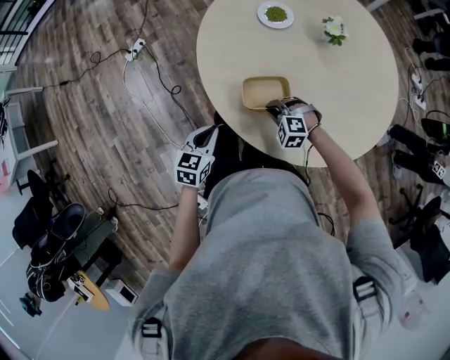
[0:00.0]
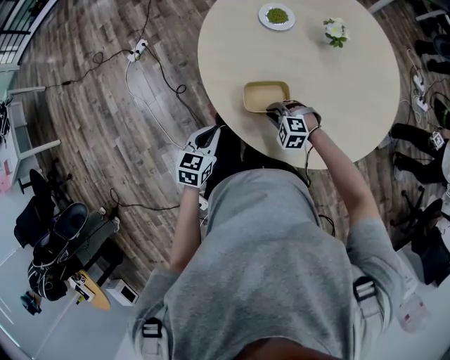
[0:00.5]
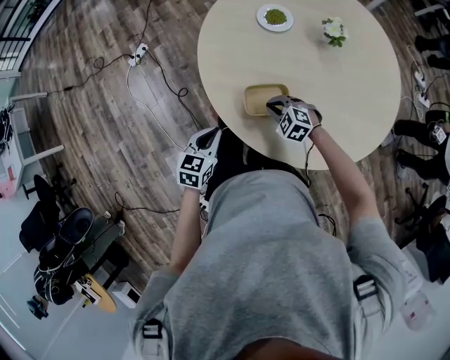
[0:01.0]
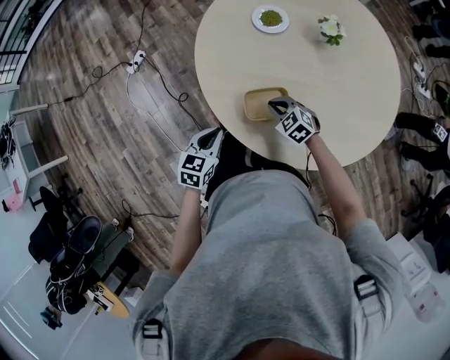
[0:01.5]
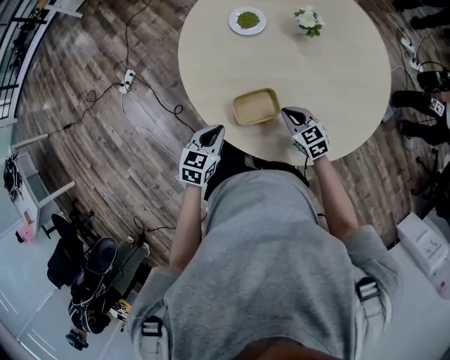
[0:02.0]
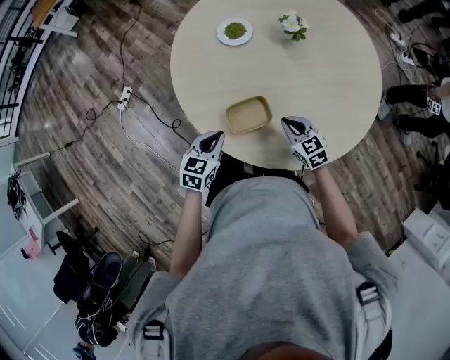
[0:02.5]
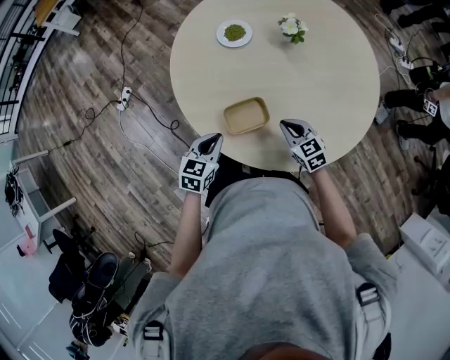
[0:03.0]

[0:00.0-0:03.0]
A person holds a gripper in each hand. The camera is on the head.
0:00.0 to 0:01.5: The right gripper goes approximately 5 cm forward, and turns by some 40 degrees.
0:01.5 to 0:03.0: The right gripper goes some 15 cm to the right, and swivels roughly 30 degrees. Meanwhile the left gripper moves to the right, approximately 10 cm.

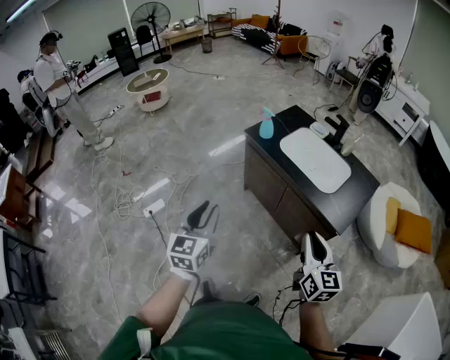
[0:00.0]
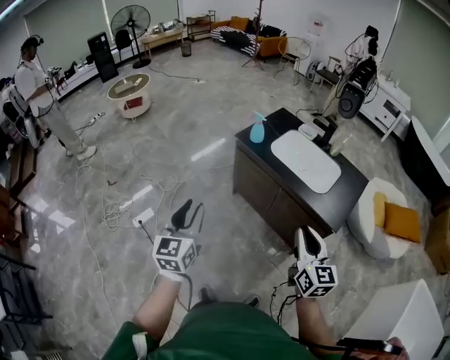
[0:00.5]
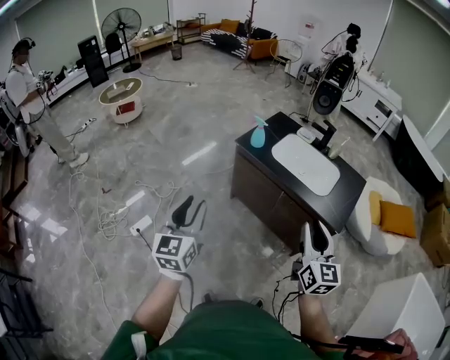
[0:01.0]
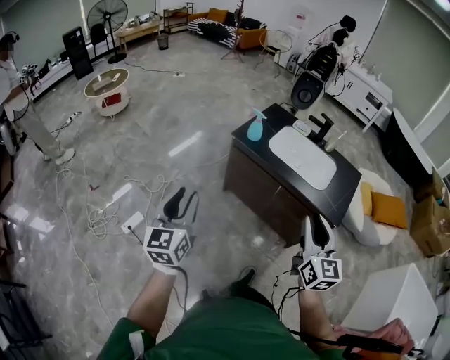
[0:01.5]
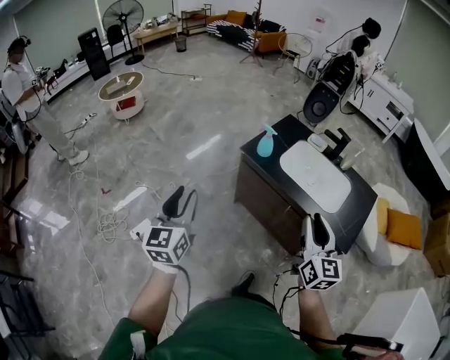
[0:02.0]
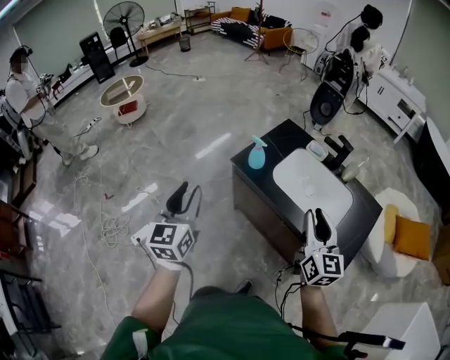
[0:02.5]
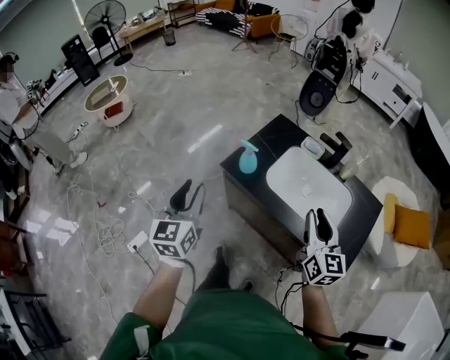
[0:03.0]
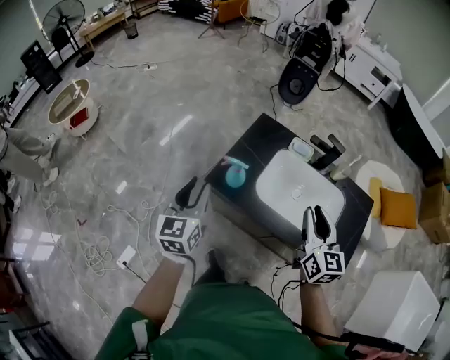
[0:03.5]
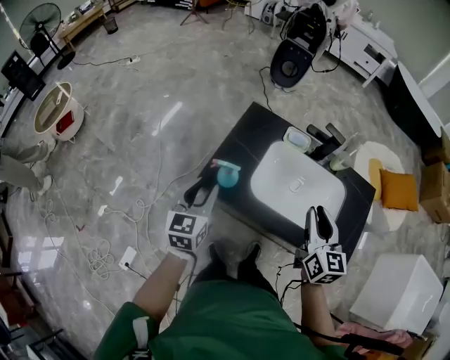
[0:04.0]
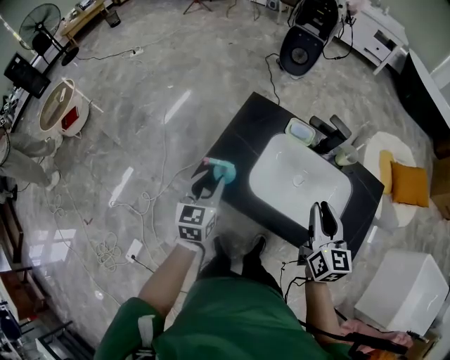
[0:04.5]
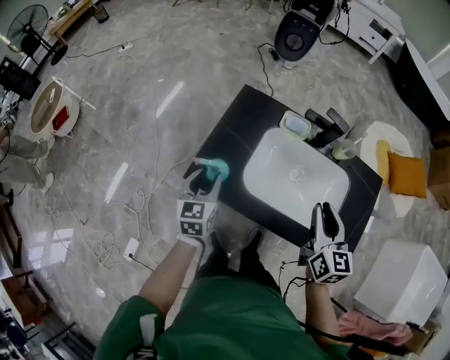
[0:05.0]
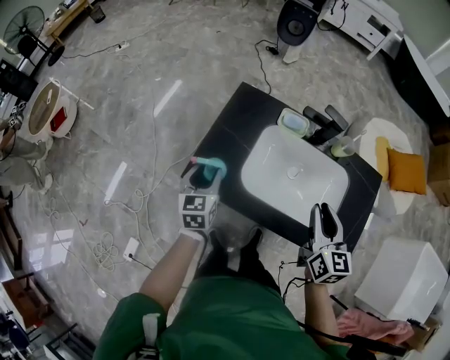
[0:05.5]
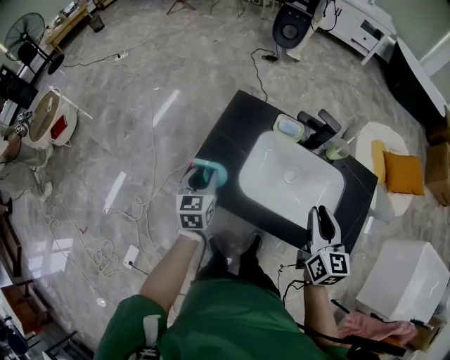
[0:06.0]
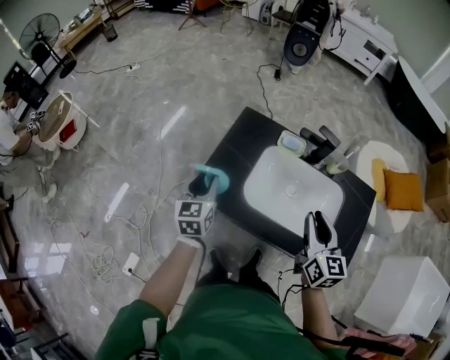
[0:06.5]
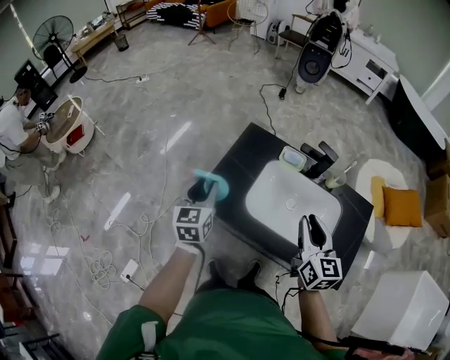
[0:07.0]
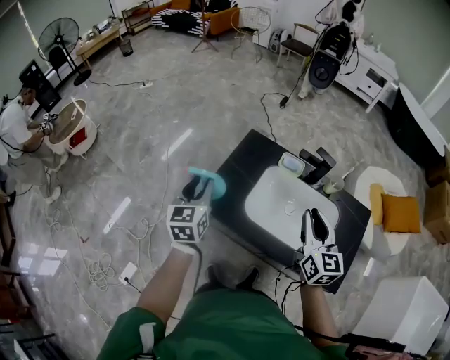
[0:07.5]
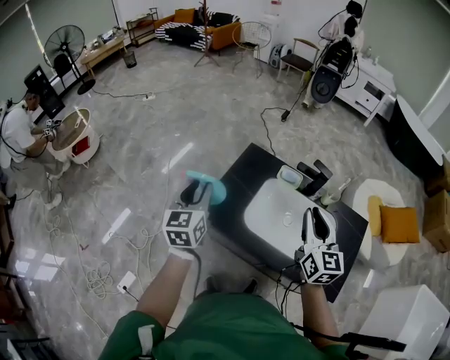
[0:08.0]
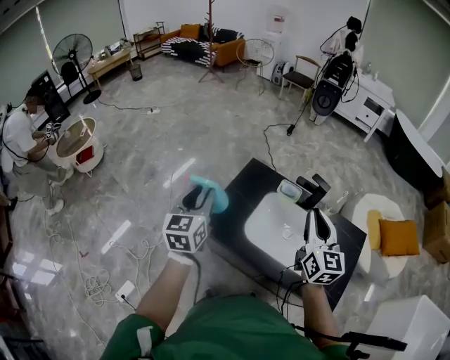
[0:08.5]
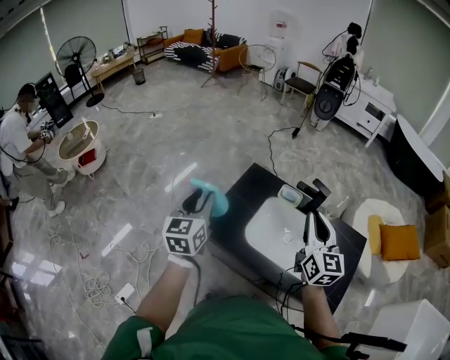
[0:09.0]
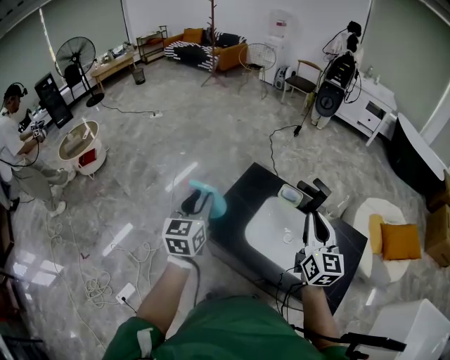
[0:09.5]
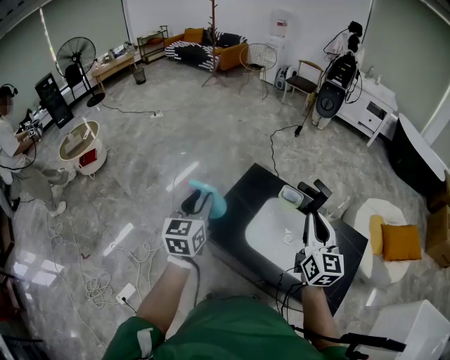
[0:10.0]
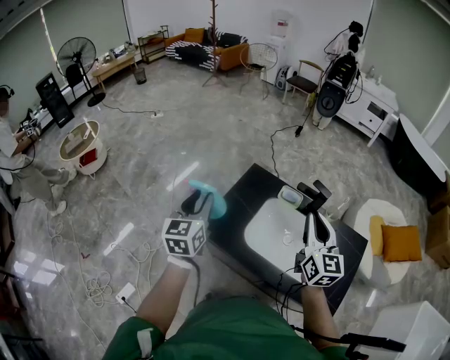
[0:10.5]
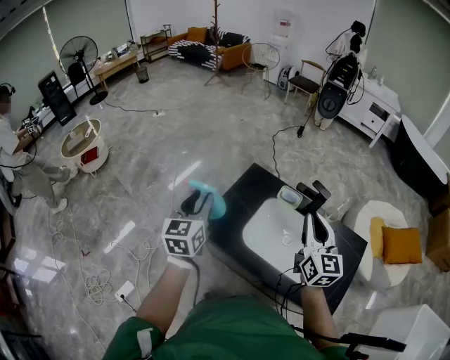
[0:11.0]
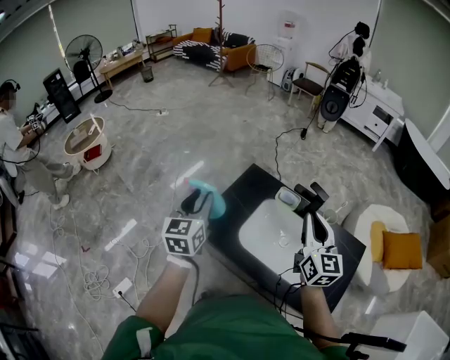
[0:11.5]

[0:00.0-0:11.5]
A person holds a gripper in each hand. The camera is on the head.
0:00.0 to 0:02.0: The right gripper shifts roughly 25 cm forward and to the left; the left gripper heads to the left and forward, covering about 30 cm.
0:02.0 to 0:04.0: The pair of grippers is taken forward, approximately 50 cm. The right gripper rotates roughly 20 degrees, while the left gripper swivels some 30 degrees.
0:04.0 to 0:06.0: The left gripper goes approximately 15 cm forward, downward and to the right. The right gripper travels to the right by roughly 5 cm.
0:06.0 to 0:07.5: The left gripper goes some 15 cm upward; the right gripper shifts some 10 cm upward.
0:07.5 to 0:09.5: The two grippers go roughly 10 cm upward.
0:09.5 to 0:11.5: There are only small adjustments of the grippers.

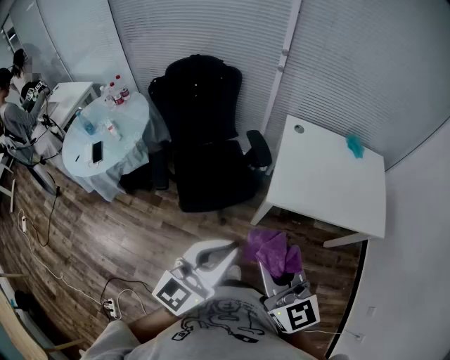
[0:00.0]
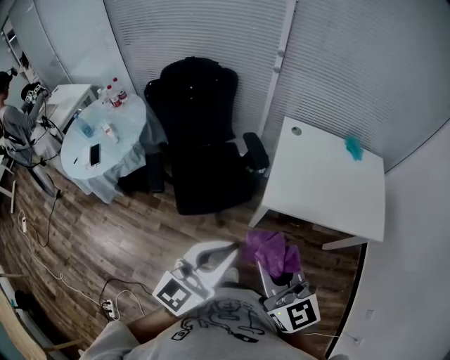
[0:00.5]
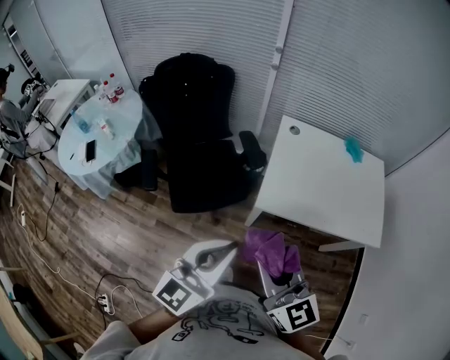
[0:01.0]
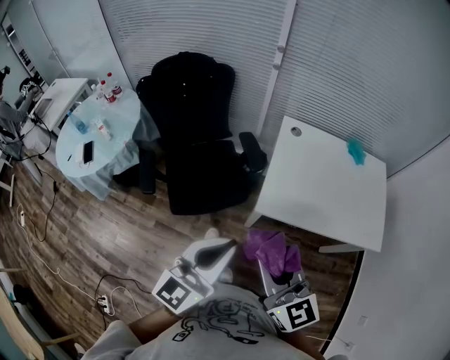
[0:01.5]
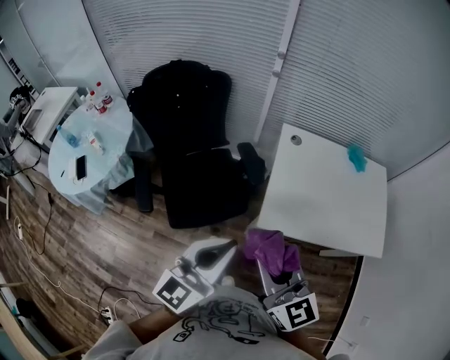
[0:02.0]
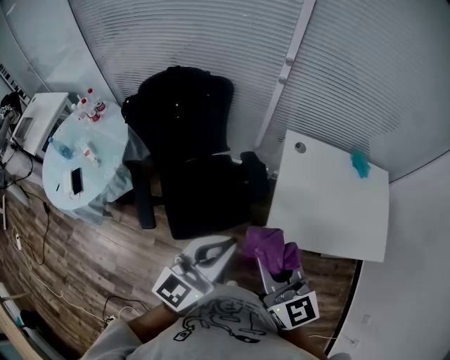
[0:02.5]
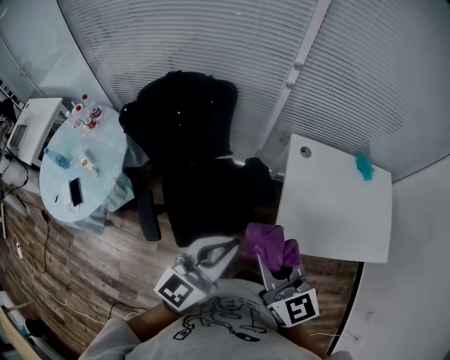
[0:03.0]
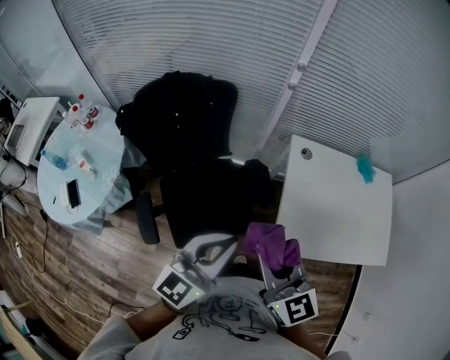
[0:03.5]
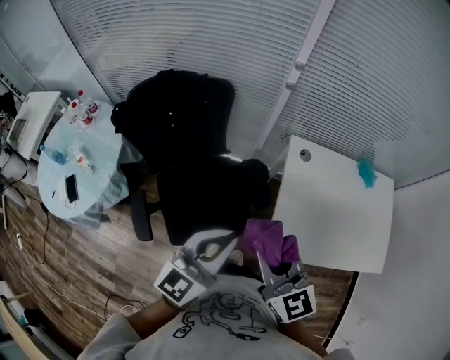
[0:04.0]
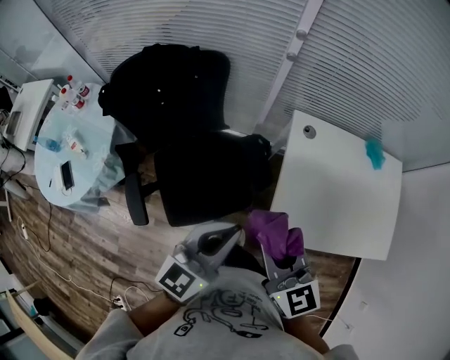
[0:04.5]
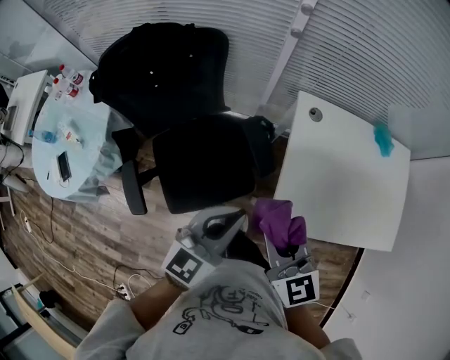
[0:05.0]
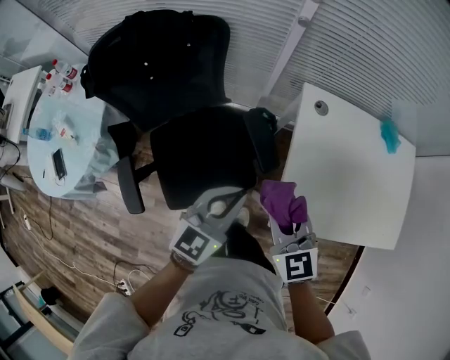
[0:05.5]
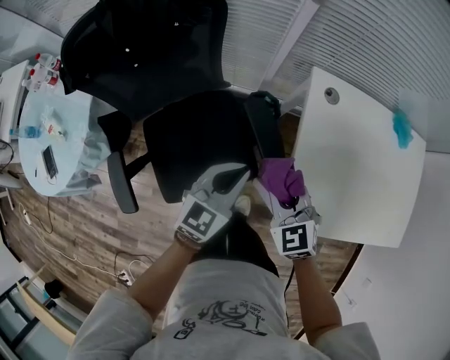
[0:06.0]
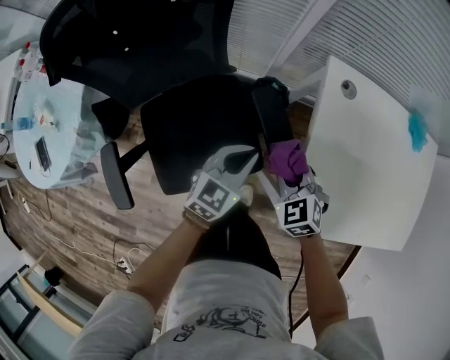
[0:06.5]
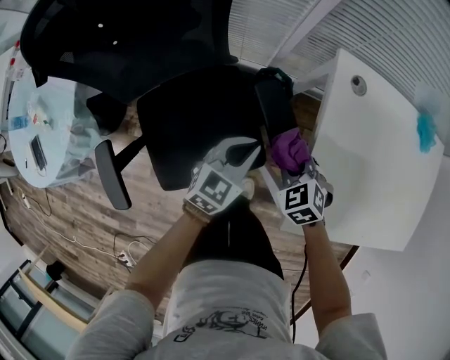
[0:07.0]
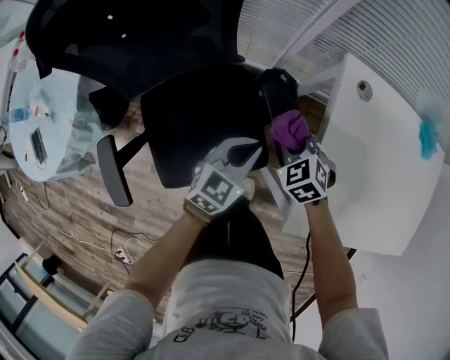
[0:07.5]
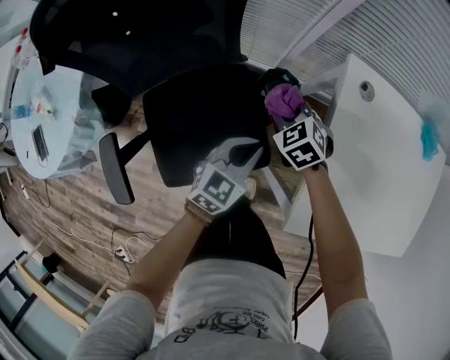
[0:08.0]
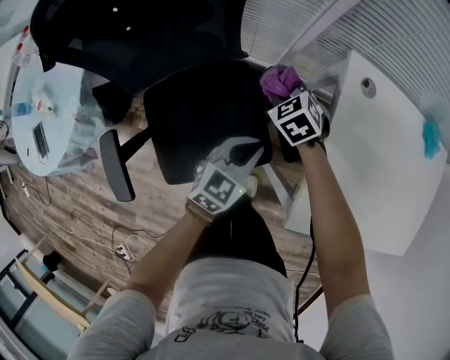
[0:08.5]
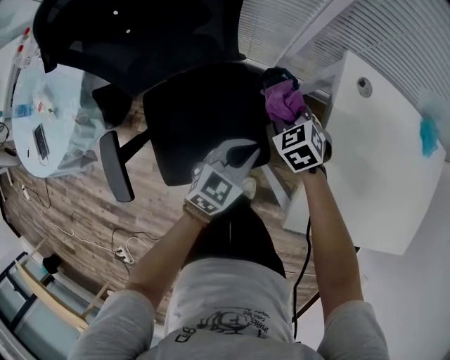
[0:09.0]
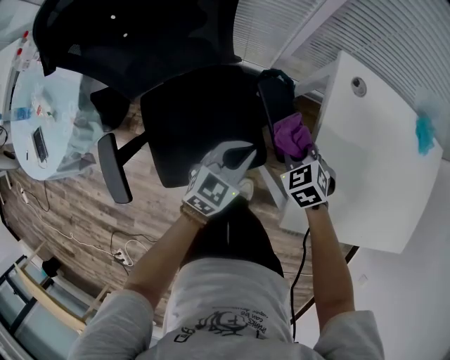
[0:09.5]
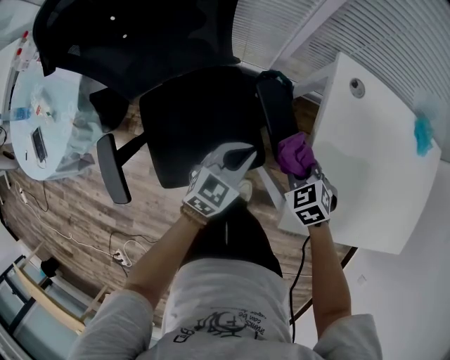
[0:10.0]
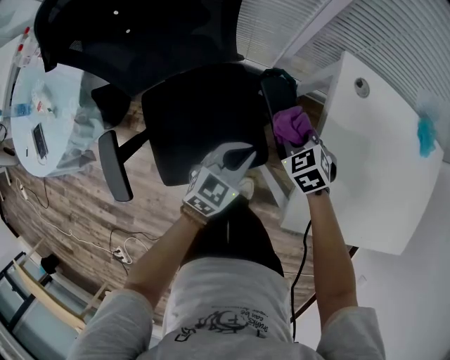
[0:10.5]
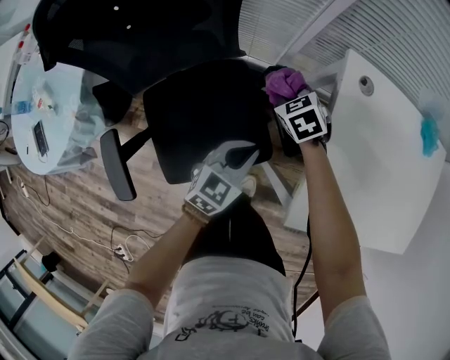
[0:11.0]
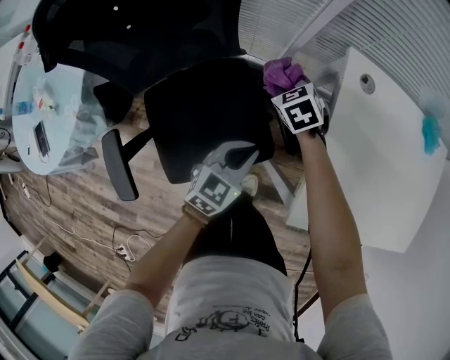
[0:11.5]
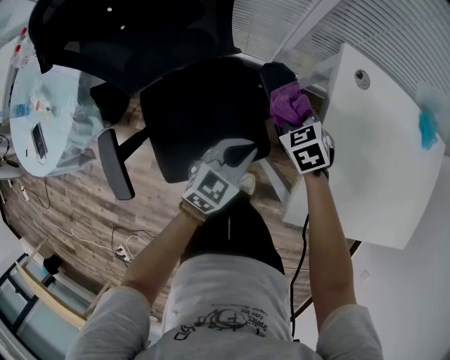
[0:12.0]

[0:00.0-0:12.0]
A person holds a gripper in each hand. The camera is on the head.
0:00.0 to 0:02.0: Both grippers travel together forward, approximately 15 cm.
0:02.0 to 0:04.0: The right gripper goes approximately 20 cm forward and to the left. Meanwhile the left gripper goes approximately 20 cm forward.
0:04.0 to 0:06.0: Both grippers travel together downward and forward, roughly 30 cm. The right gripper rotates roughly 30 degrees.
0:06.0 to 0:08.0: The right gripper shifts approximately 25 cm downward and forward, and swivels roughly 20 degrees. The left gripper moves downward, about 15 cm.
0:08.0 to 0:10.0: The right gripper travels backward and to the right by about 15 cm.
0:10.0 to 0:12.0: The right gripper is displaced forward and to the left by approximately 10 cm.
